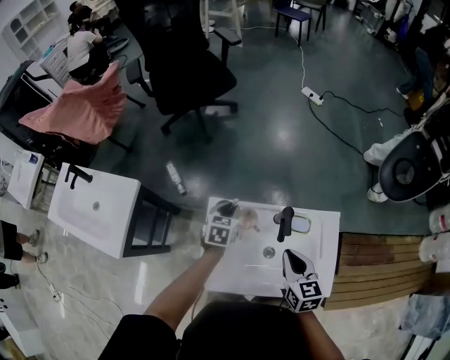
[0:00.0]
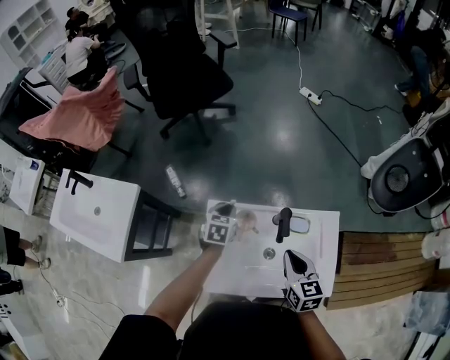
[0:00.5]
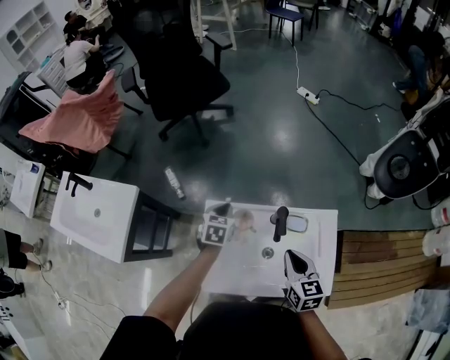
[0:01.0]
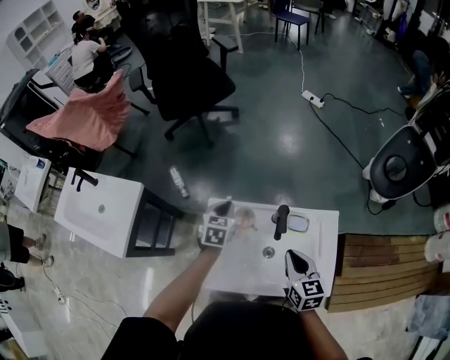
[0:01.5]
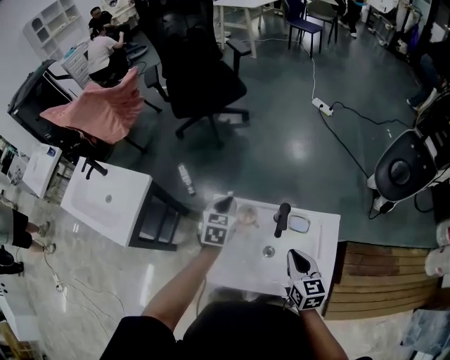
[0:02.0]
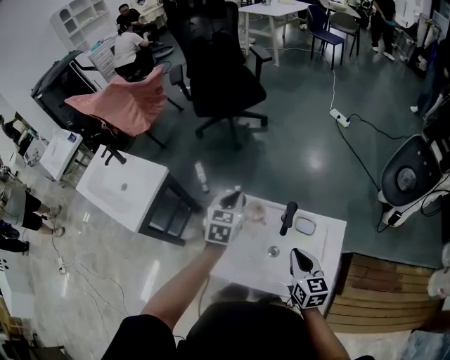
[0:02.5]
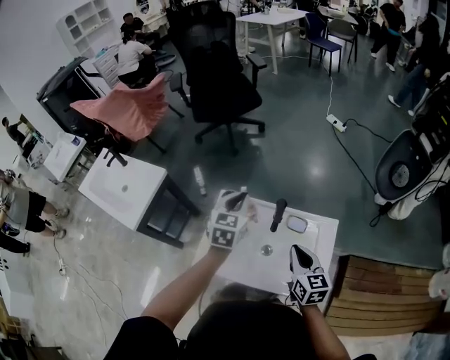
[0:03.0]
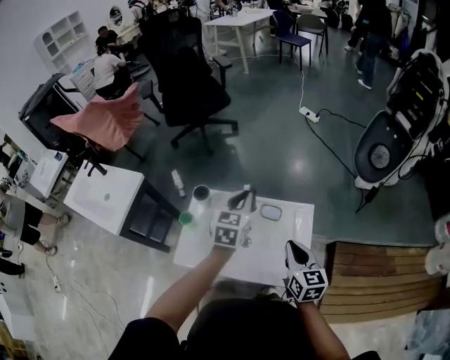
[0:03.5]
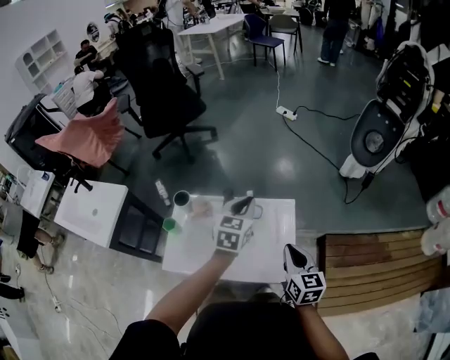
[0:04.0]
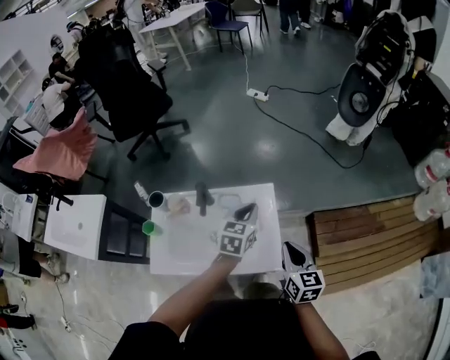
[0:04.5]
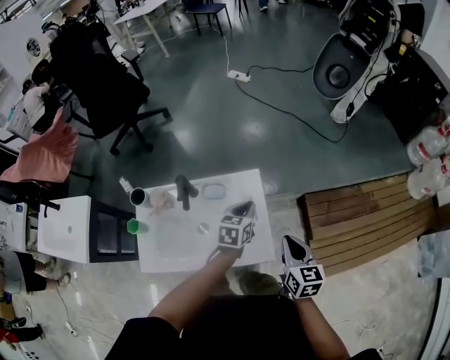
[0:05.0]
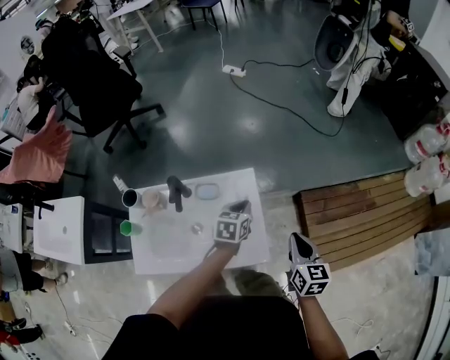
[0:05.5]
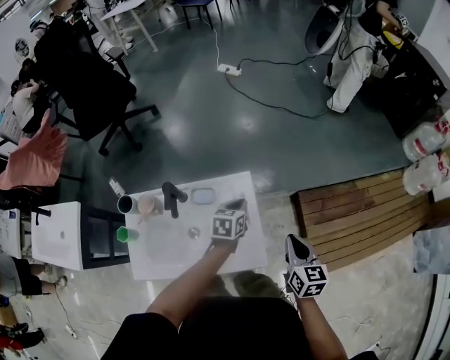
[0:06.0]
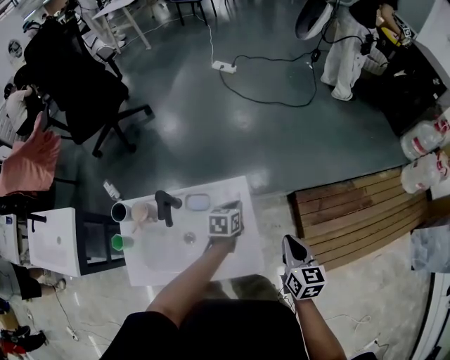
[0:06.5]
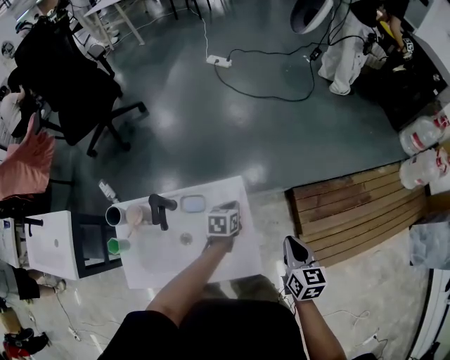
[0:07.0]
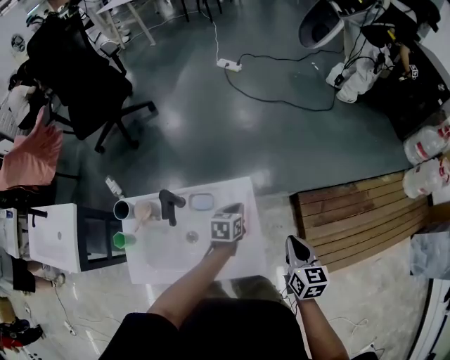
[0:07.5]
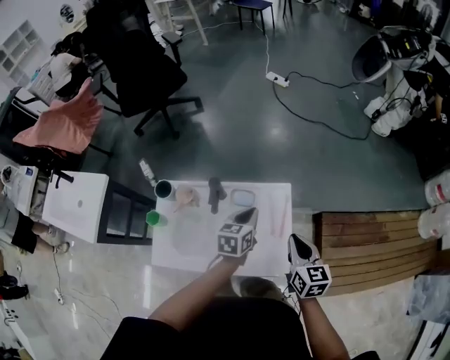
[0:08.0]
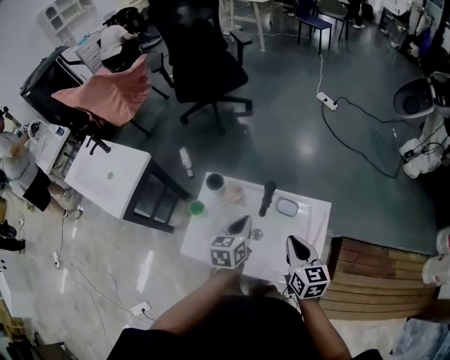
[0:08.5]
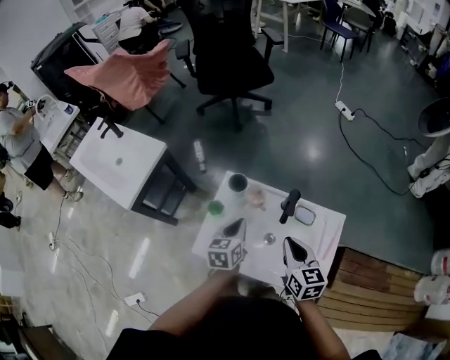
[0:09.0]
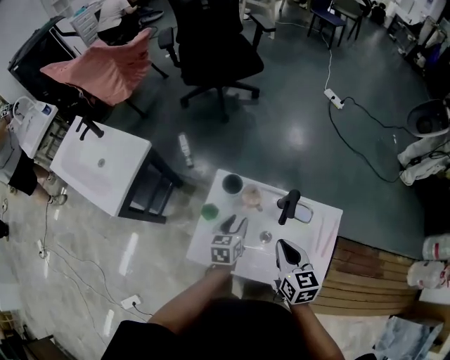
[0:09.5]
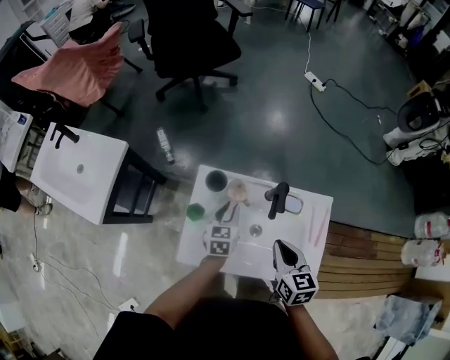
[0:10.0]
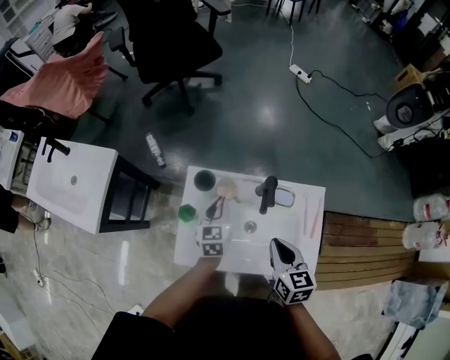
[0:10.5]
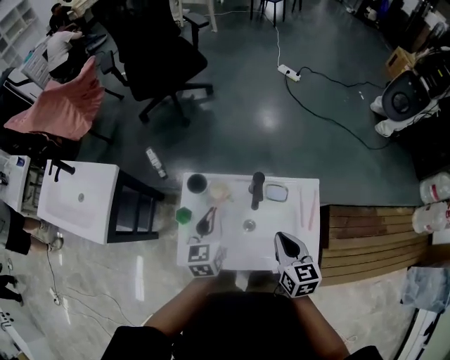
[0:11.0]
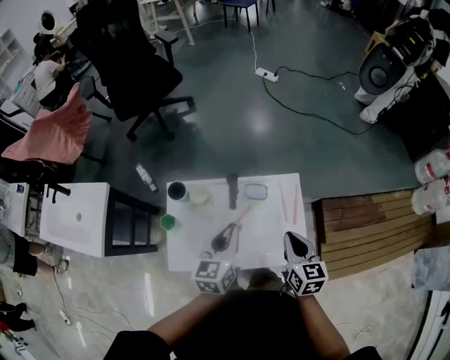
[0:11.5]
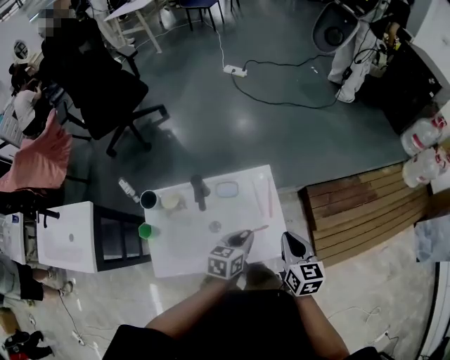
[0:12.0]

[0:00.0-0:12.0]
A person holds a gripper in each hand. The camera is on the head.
0:00.0 to 0:02.0: The left gripper travels upward by approximately 10 cm, while the right gripper shifts by some 5 cm.
0:02.0 to 0:04.0: Both grippers move to the right and backward, roughly 30 cm.
0:04.0 to 0:06.0: The right gripper is displaced to the right and downward by about 15 cm, while the left gripper moves downward and to the right, approximately 25 cm, and rotates roughly 30 degrees.
0:06.0 to 0:08.0: The left gripper travels to the left and upward by about 15 cm; the right gripper is displaced to the left by about 10 cm.
0:08.0 to 0:10.0: Both grippers move to the left, some 30 cm. The left gripper opens up.
0:10.0 to 0:12.0: The right gripper moves some 30 cm, and swivels approximately 30 degrees; the left gripper ends up about 35 cm from where it was, and rotates about 40 degrees.

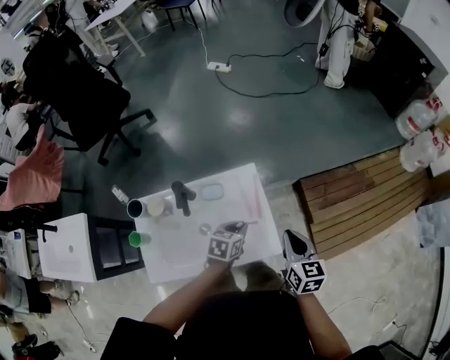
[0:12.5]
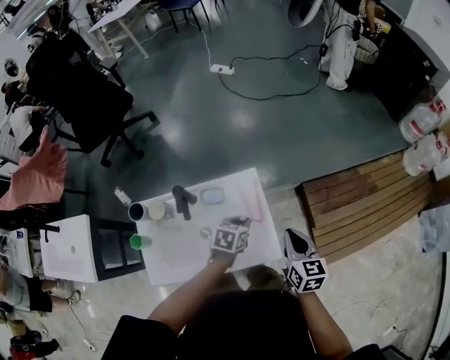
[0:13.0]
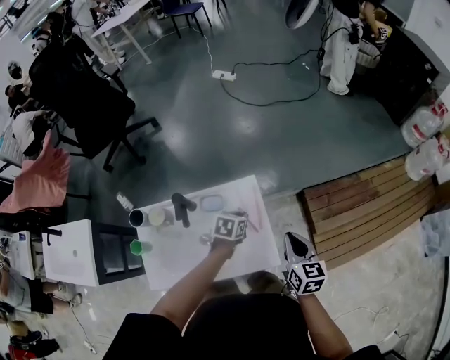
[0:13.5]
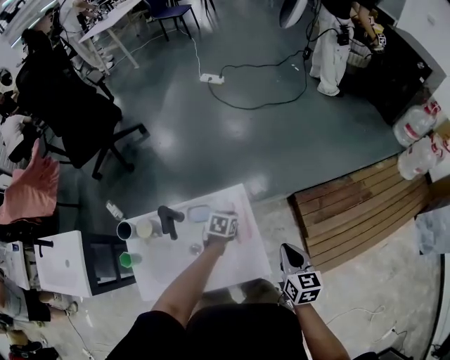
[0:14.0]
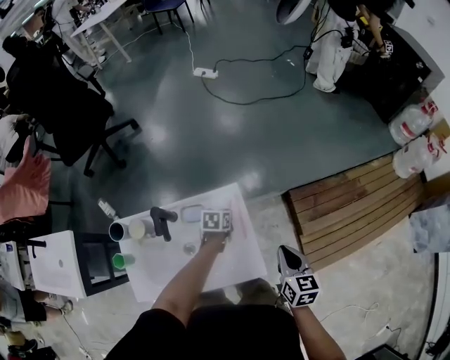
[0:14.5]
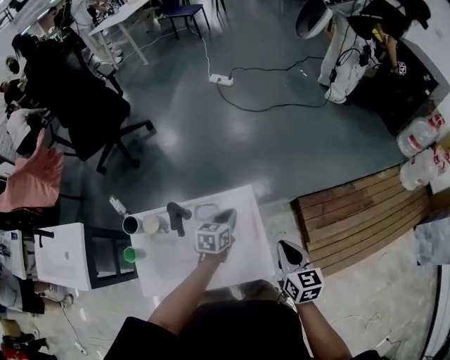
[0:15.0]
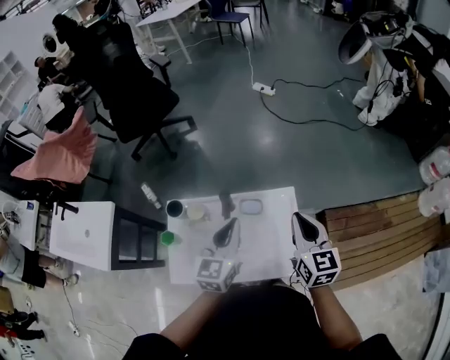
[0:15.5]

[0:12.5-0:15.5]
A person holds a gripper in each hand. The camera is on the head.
0:12.5 to 0:14.0: The left gripper is displaced forward and downward by approximately 15 cm. The right gripper shifts roughly 5 cm forward.
0:14.0 to 0:15.5: The right gripper is displaced to the left and upward by about 25 cm, and changes its angle by approximately 20 degrees. Meanwhile the left gripper shifts approximately 40 cm upward, to the left and backward, and tilts its fingers some 40 degrees upward.

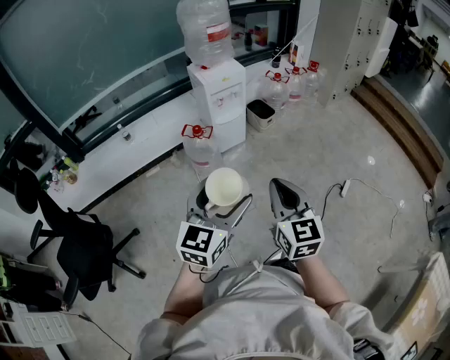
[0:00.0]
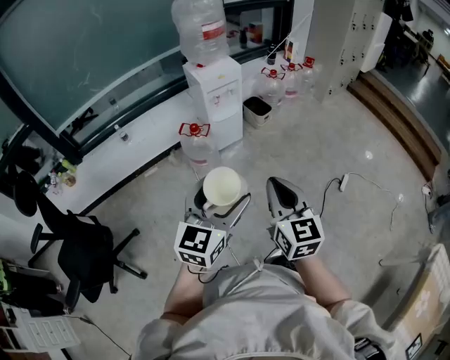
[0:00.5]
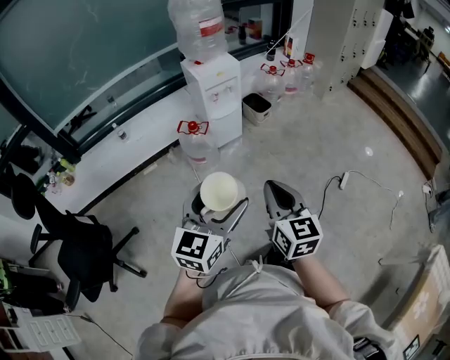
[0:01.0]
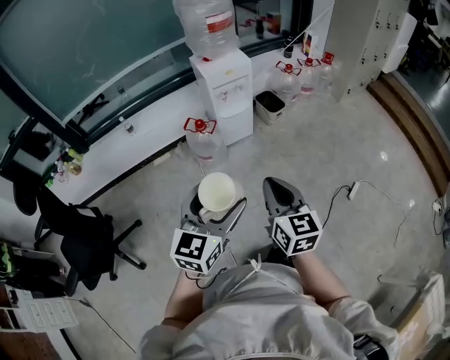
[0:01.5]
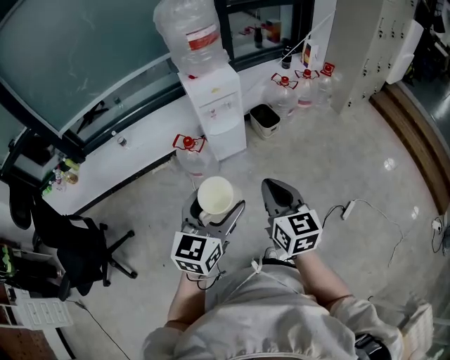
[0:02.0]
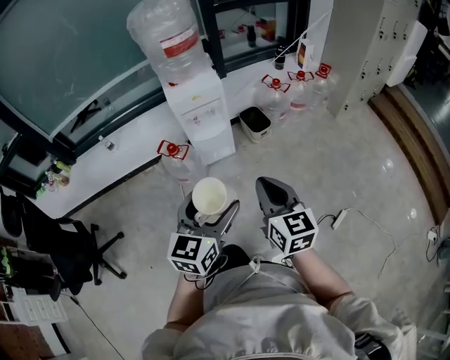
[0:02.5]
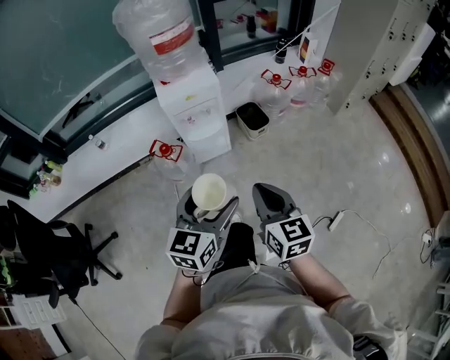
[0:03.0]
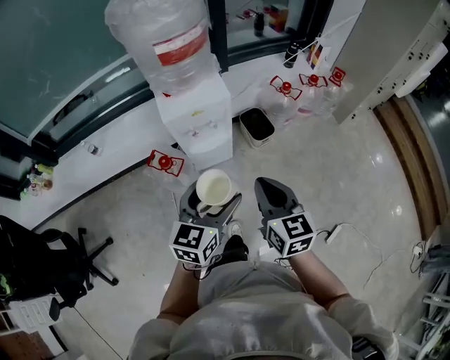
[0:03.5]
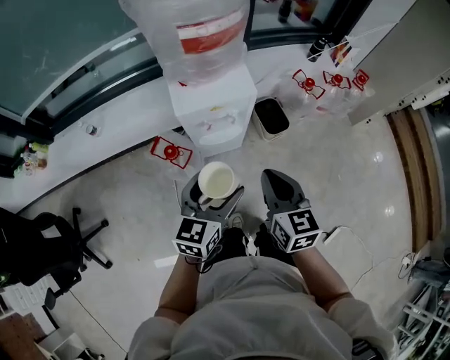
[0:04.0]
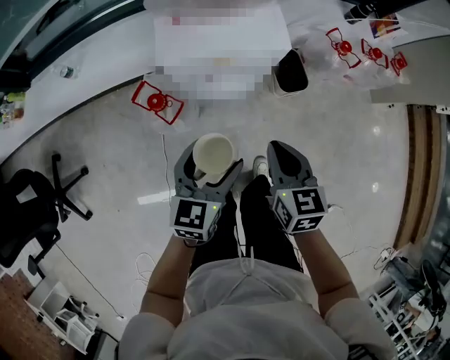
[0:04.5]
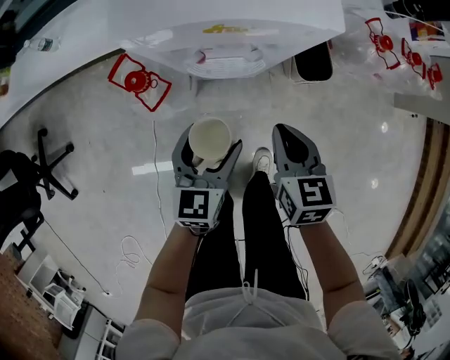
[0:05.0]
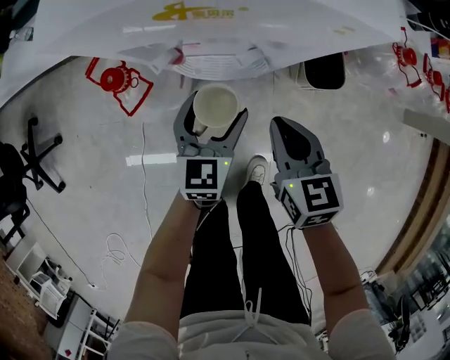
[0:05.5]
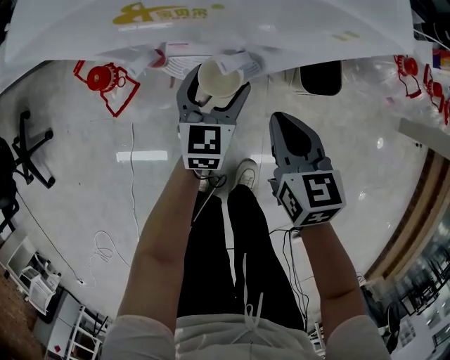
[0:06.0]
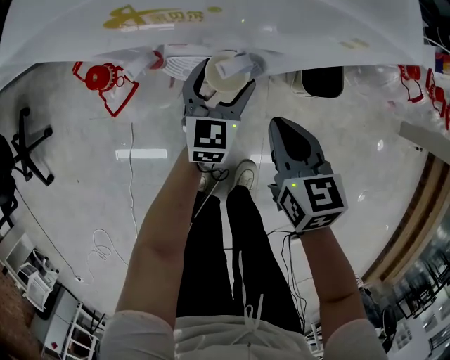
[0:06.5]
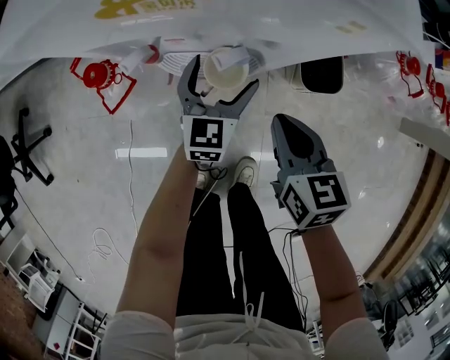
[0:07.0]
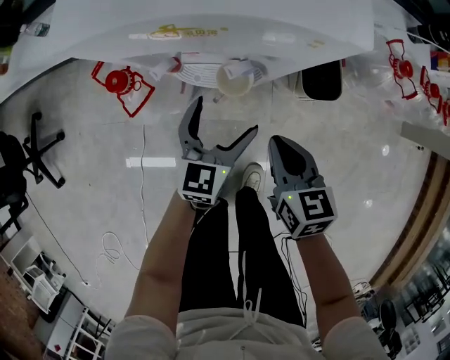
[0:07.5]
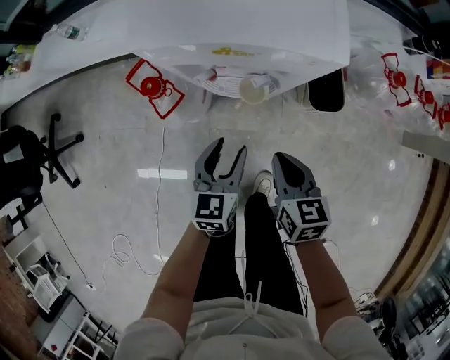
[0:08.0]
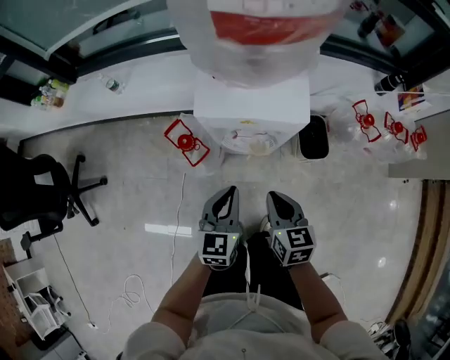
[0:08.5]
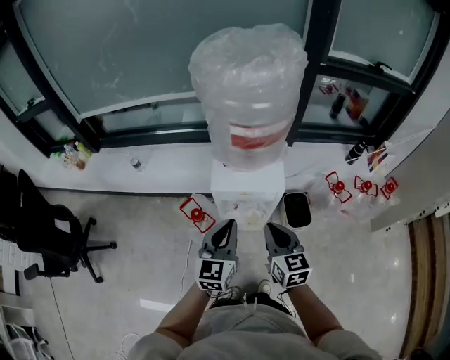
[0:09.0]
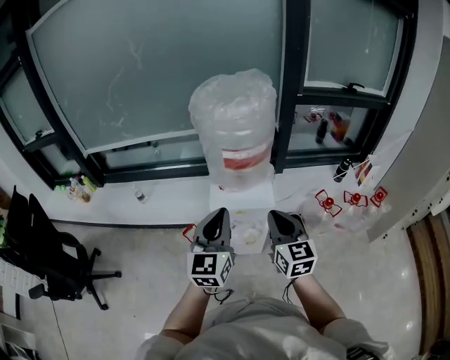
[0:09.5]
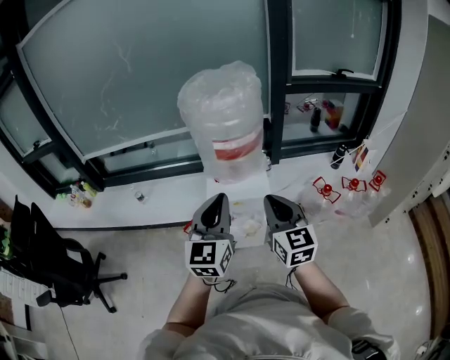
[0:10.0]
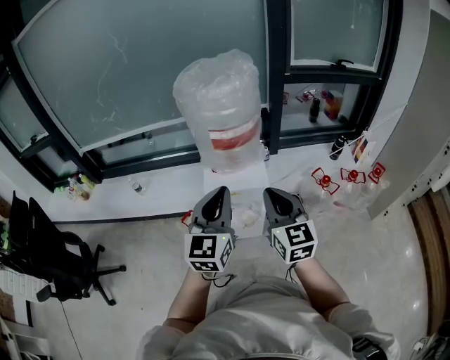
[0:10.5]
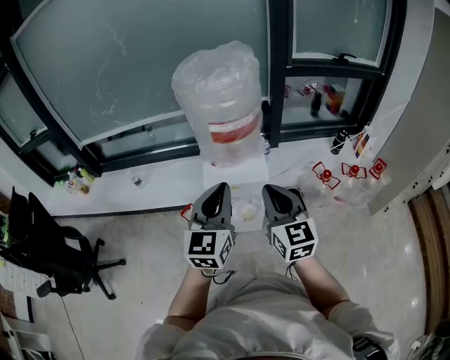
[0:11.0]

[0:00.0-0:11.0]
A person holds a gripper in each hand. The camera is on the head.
0:00.0 to 0:02.0: Both grippers travel together forward and to the right, some 20 cm.
0:02.0 to 0:03.5: Both grippers travel together forward, about 30 cm.
0:03.5 to 0:05.5: The two grippers go approximately 40 cm downward. The right gripper changes its angle by some 30 degrees. Meanwhile the left gripper swivels about 30 degrees.
0:05.5 to 0:07.5: The left gripper moves roughly 10 cm forward and comes back.
0:07.5 to 0:09.0: Both grippers move upward, some 40 cm. The left gripper closes, while the right gripper turns by about 20 degrees.
0:09.0 to 0:11.0: The grippers both shift upward by about 15 cm. The right gripper changes its angle by approximately 20 degrees.
